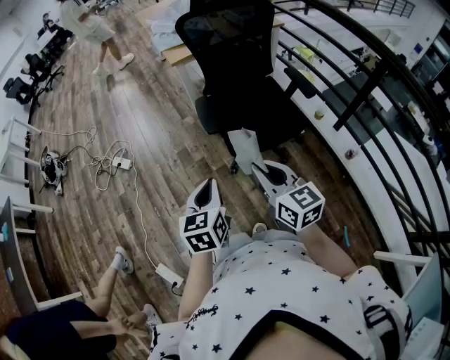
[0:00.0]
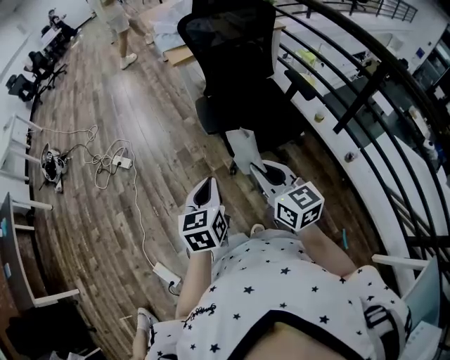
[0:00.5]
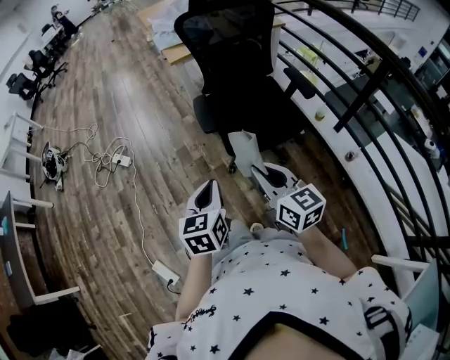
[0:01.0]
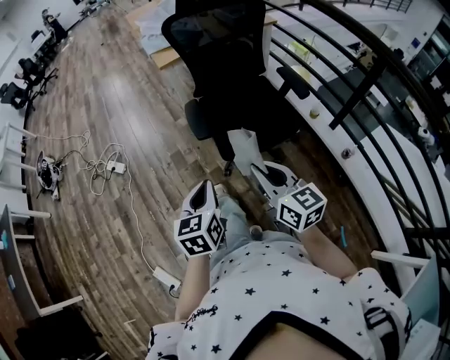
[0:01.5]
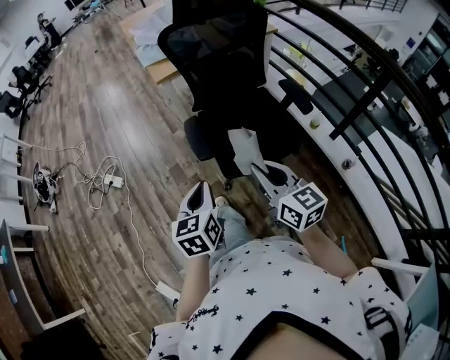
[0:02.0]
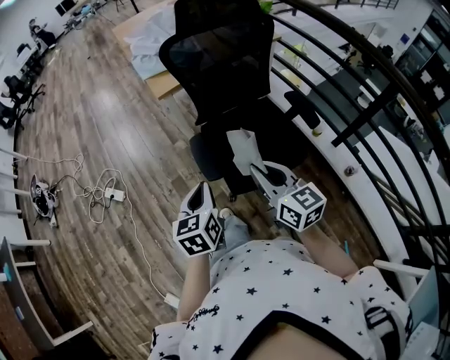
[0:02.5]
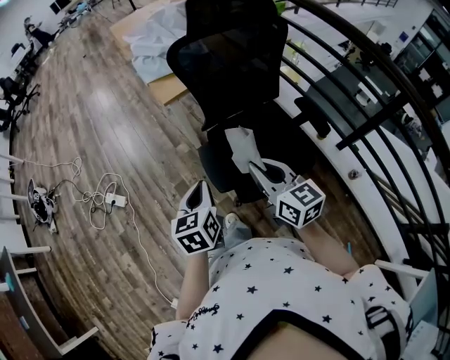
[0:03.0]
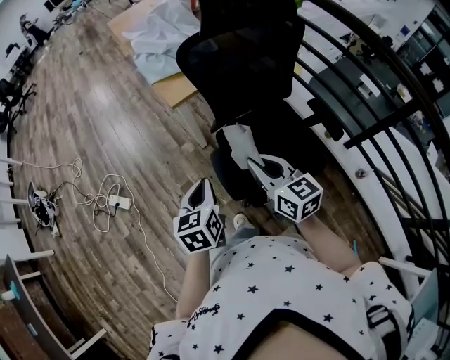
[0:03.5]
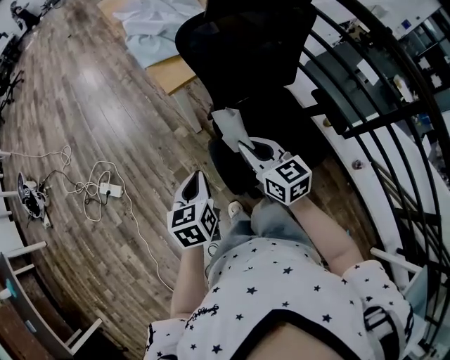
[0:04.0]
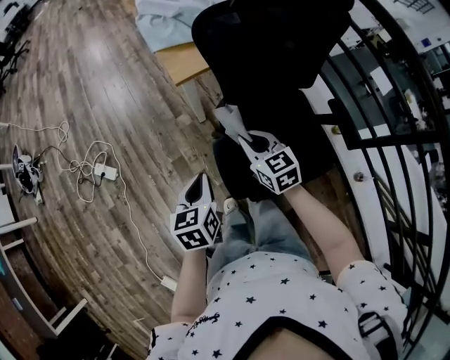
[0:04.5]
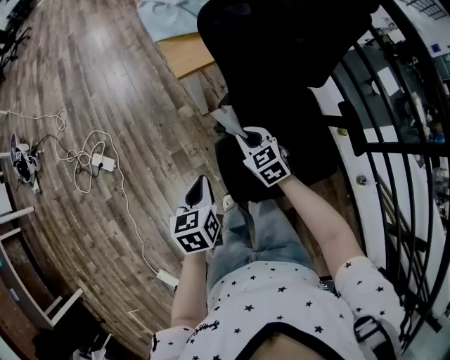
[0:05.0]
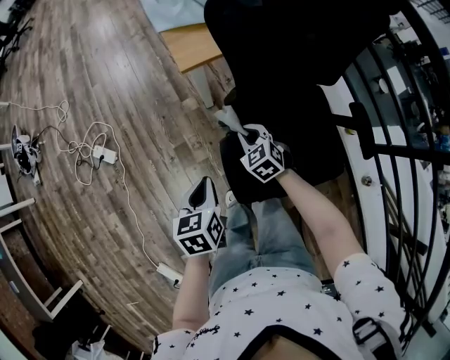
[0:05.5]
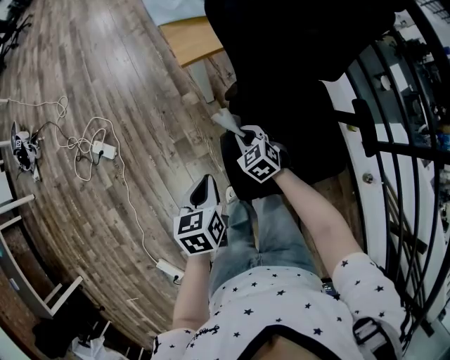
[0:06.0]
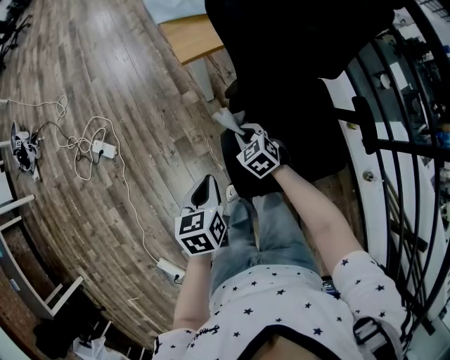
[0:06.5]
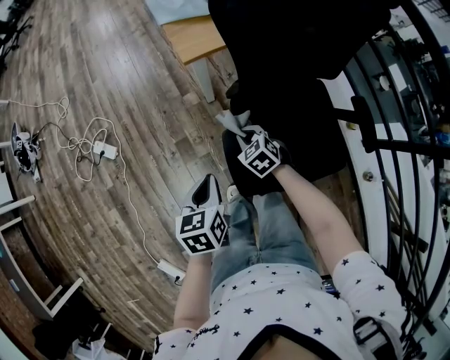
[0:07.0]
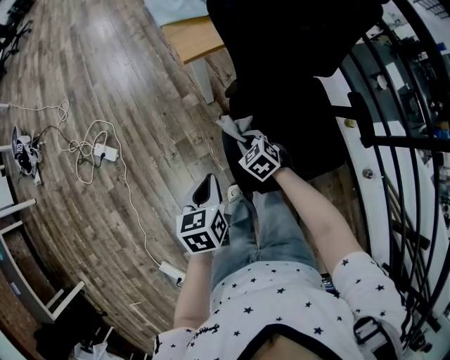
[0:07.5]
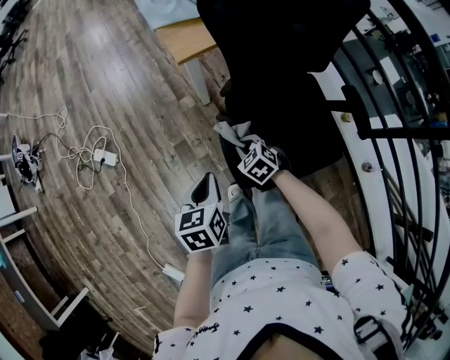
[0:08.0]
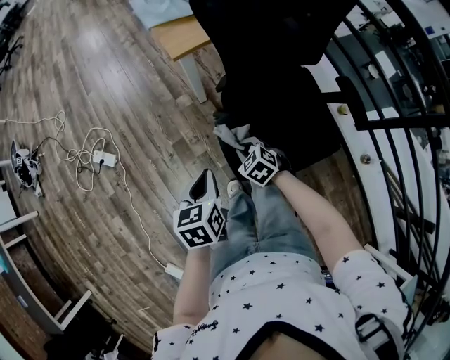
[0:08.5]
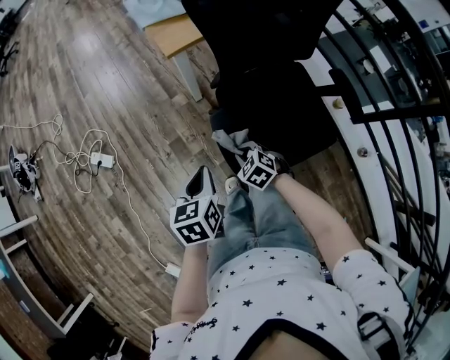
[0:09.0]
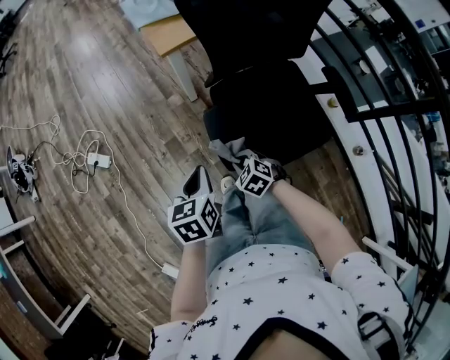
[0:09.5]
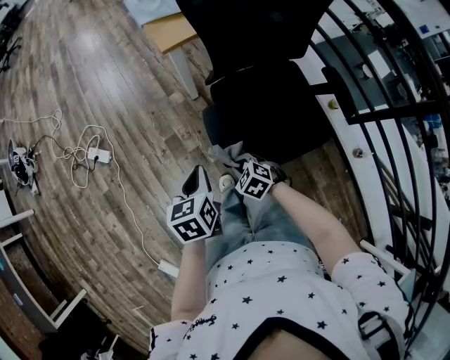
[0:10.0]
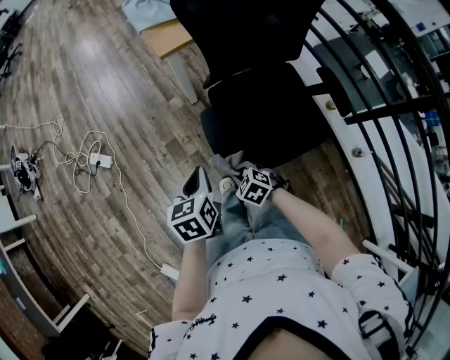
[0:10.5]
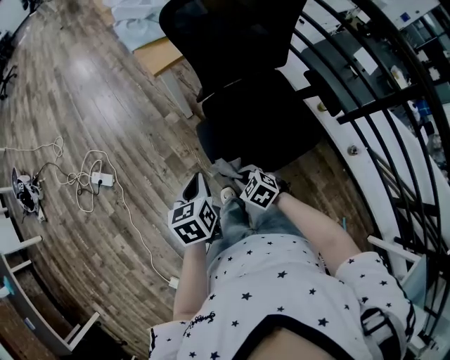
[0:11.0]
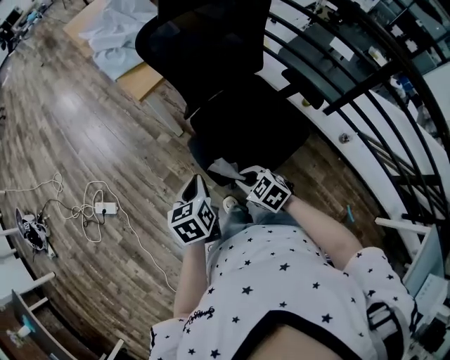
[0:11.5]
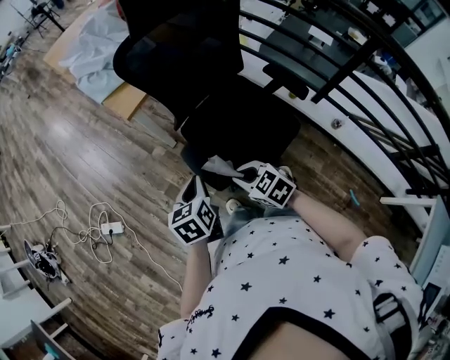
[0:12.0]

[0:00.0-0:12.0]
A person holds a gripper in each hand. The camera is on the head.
0:00.0 to 0:02.0: The right gripper travels forward and to the right by some 10 cm; the left gripper heads forward, covering approximately 10 cm.
0:02.0 to 0:04.0: The grippers both shift forward by approximately 30 cm.
0:04.0 to 0:06.0: The right gripper goes about 25 cm downward, and points its fingers roughly 30 degrees further downward; the left gripper heads downward, covering some 10 cm.
0:06.0 to 0:08.0: The right gripper heads backward, covering roughly 5 cm.
0:08.0 to 0:10.0: The right gripper goes about 15 cm backward; the left gripper goes about 5 cm backward.
0:10.0 to 0:12.0: The right gripper is displaced upward by some 15 cm, and changes its angle by approximately 30 degrees. The left gripper heads to the right, covering approximately 5 cm.

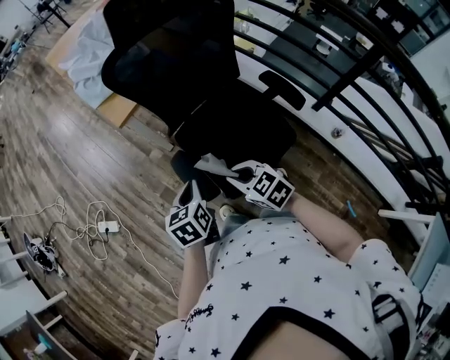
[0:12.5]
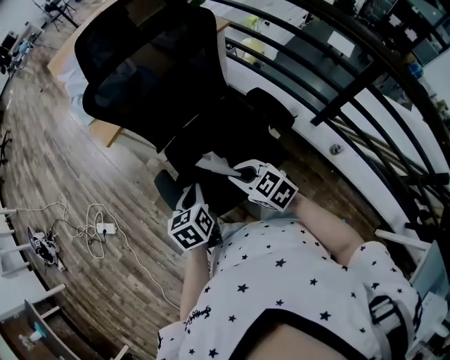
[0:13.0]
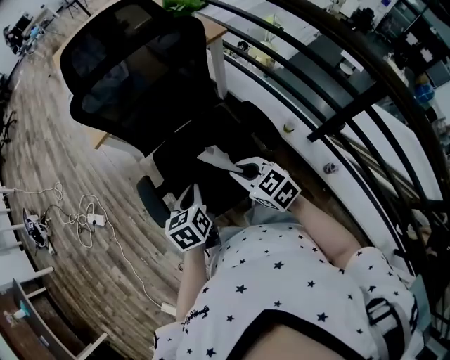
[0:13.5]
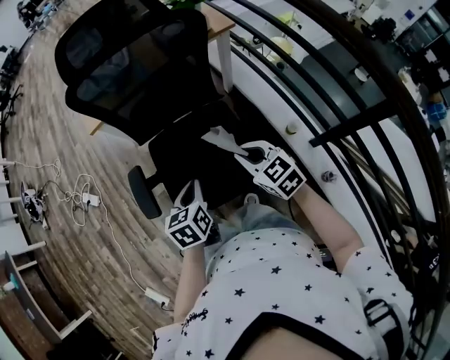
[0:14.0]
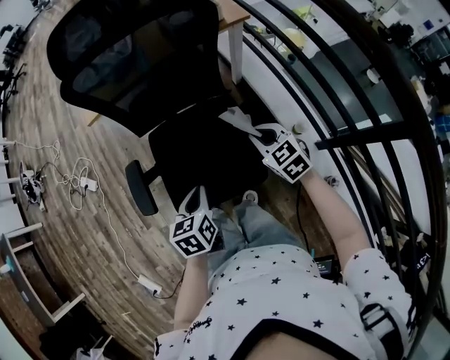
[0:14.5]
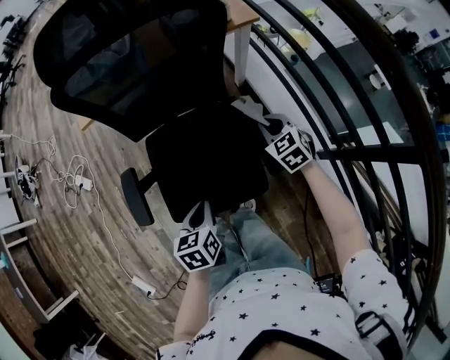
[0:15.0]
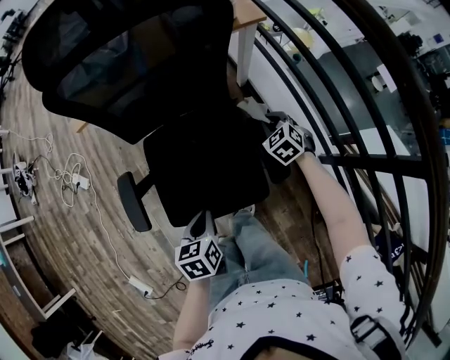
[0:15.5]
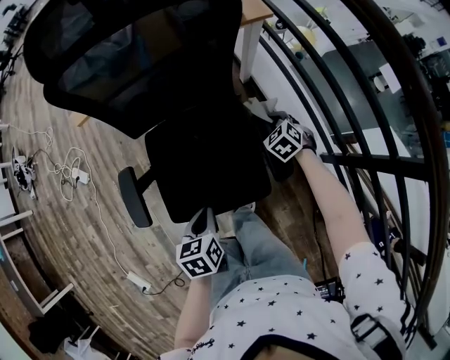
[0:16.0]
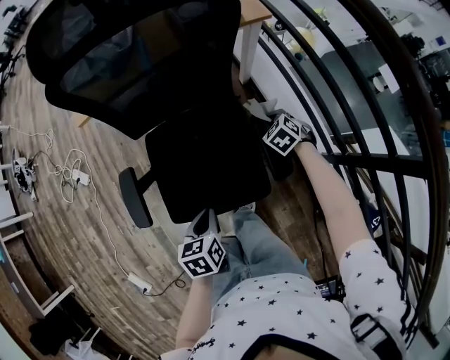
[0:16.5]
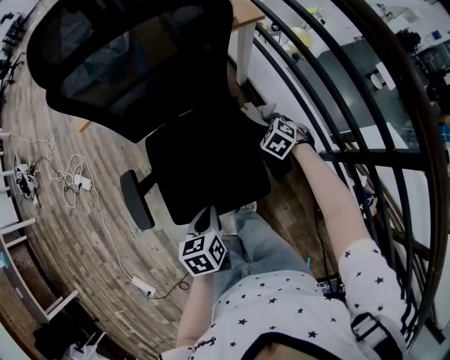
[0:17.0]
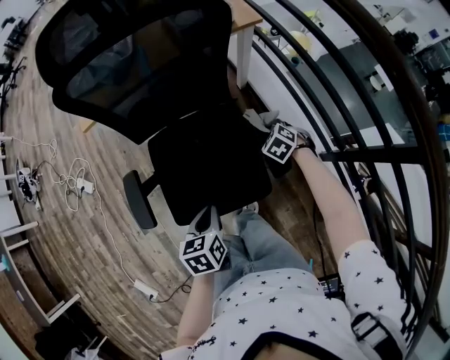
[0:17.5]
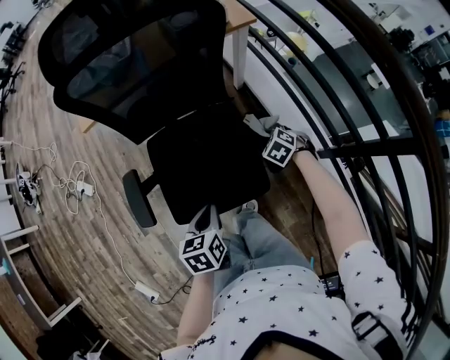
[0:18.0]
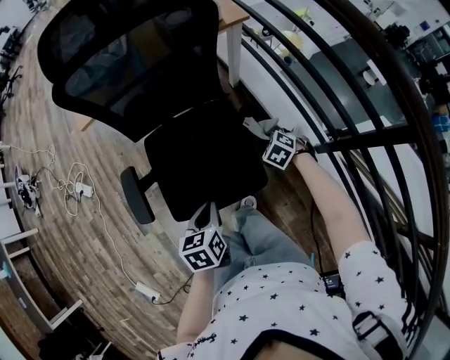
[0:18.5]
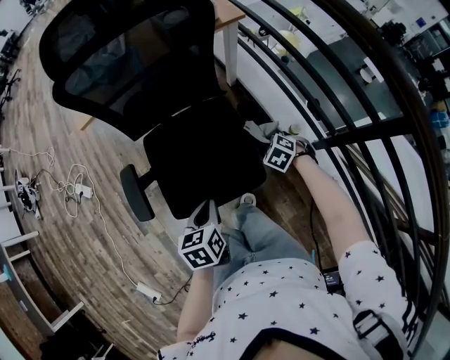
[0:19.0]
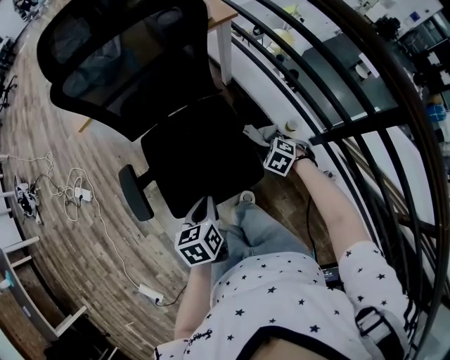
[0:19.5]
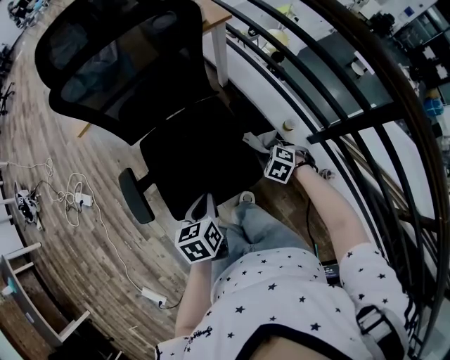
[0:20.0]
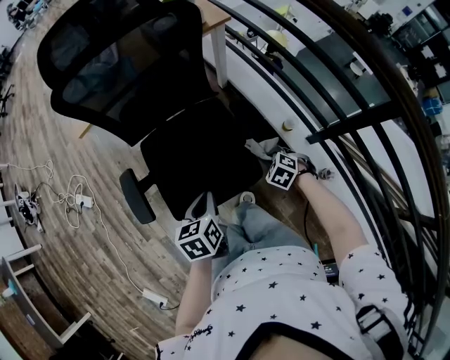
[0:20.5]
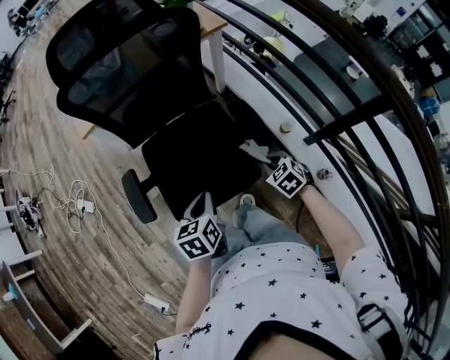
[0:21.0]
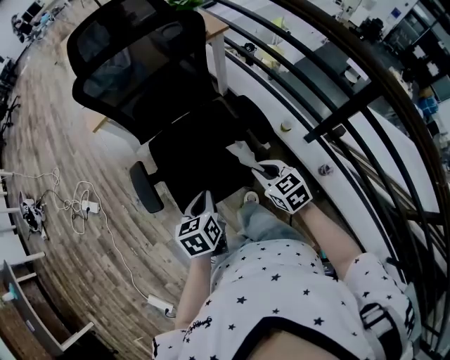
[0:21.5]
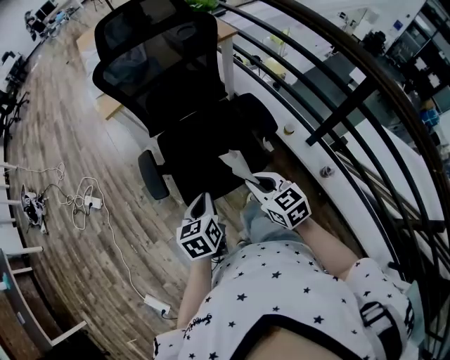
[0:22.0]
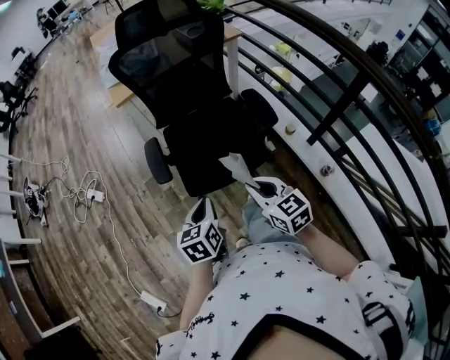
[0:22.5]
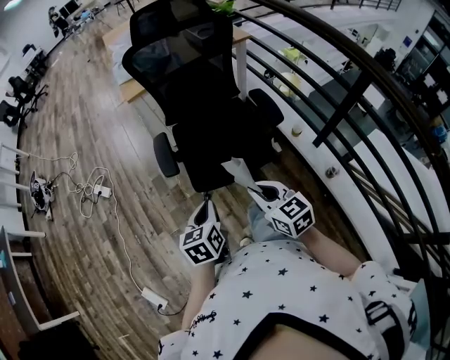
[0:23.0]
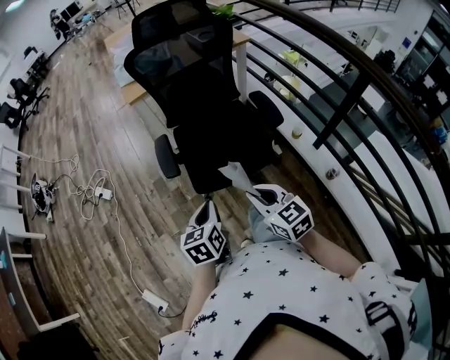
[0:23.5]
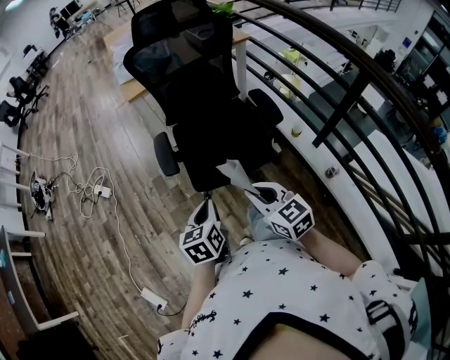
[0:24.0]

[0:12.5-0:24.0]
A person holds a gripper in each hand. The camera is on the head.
0:12.5 to 0:14.5: The two grippers go about 30 cm to the right.
0:14.5 to 0:16.5: The right gripper goes approximately 20 cm downward, forward and to the right, and swivels some 30 degrees, while the left gripper heads downward, covering about 5 cm.
0:16.5 to 0:18.5: The right gripper goes approximately 10 cm backward.
0:18.5 to 0:20.0: The right gripper is displaced backward by roughly 10 cm.
0:20.0 to 0:22.0: The left gripper heads backward, to the left and upward, covering some 15 cm; the right gripper shifts roughly 30 cm upward, to the left and backward, and tips its fingers upward by about 40 degrees.
0:22.0 to 0:24.0: Both grippers move backward and to the left, roughly 15 cm.

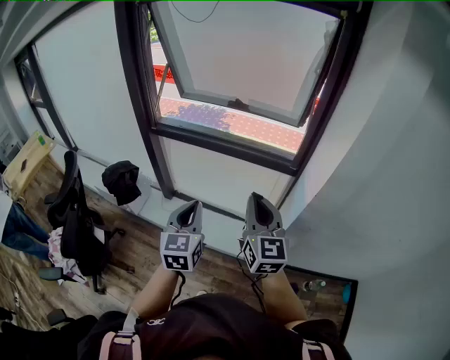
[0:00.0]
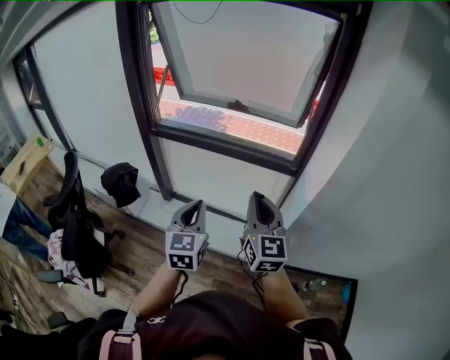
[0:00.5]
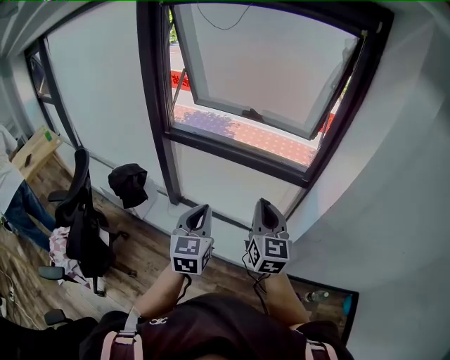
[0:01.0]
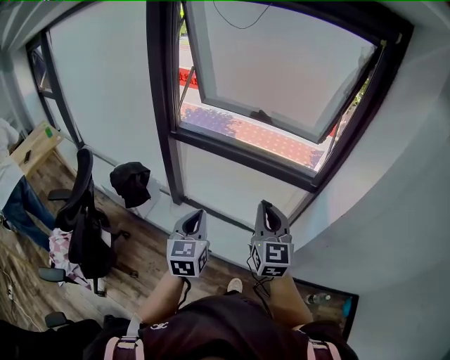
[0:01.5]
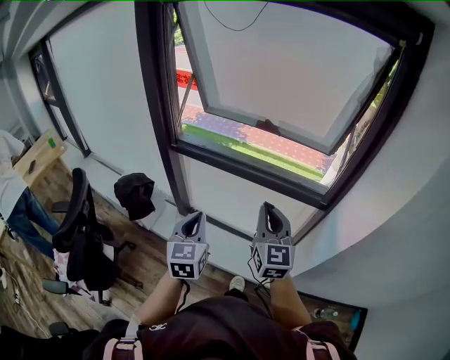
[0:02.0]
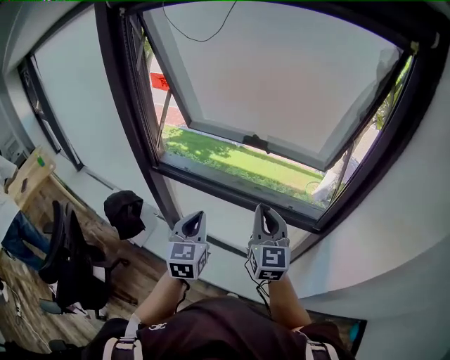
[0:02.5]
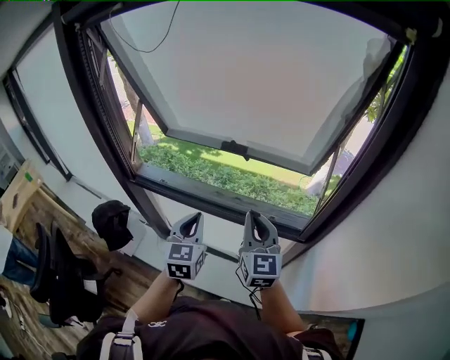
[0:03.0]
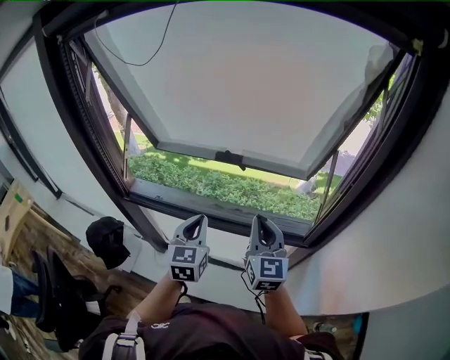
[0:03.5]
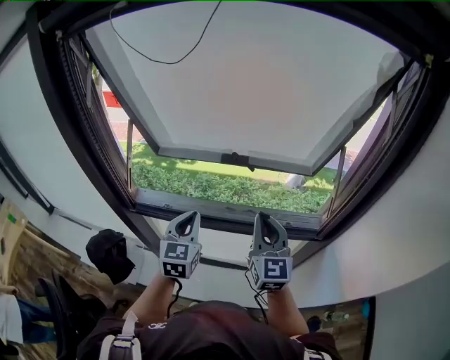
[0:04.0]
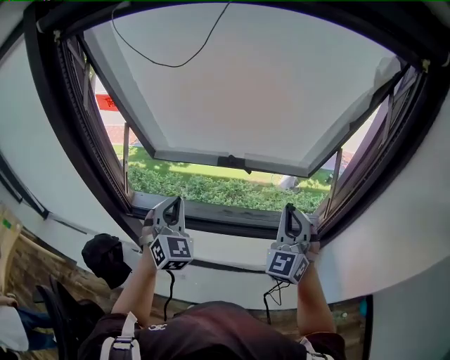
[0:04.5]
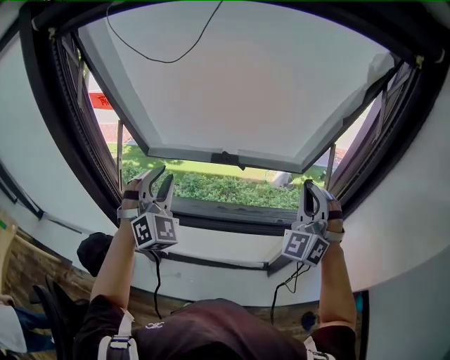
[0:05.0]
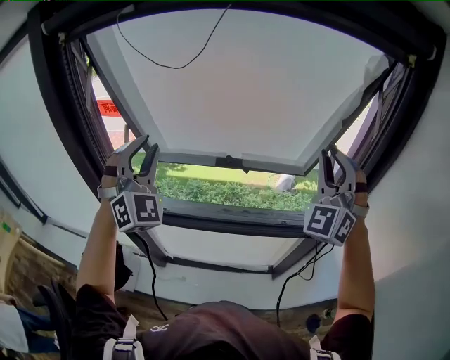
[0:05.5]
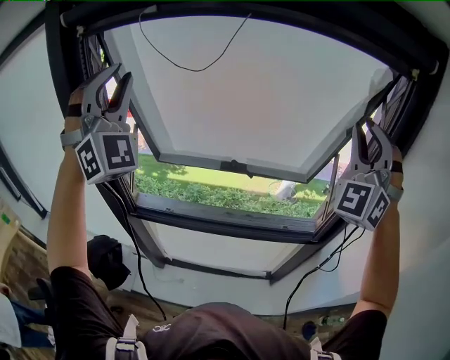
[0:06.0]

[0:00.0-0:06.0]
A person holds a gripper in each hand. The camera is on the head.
0:00.0 to 0:02.0: The grippers both shift forward and to the left by about 15 cm.
0:02.0 to 0:04.0: Both grippers move forward, some 30 cm.
0:04.0 to 0:06.0: The grippers both shift upward by about 40 cm. The left gripper twists approximately 70 degrees clockwise, seen from behind, and opens. The right gripper twists some 70 degrees counterclockwise, seen from behind.
